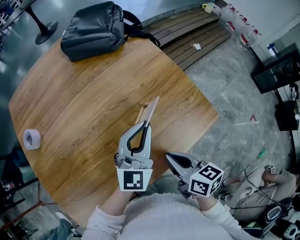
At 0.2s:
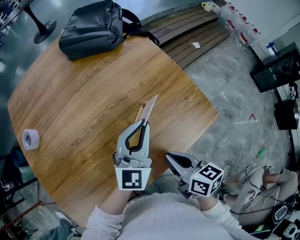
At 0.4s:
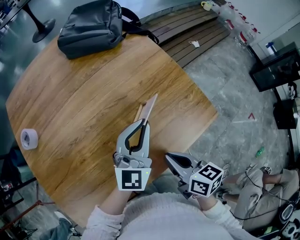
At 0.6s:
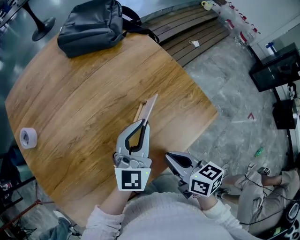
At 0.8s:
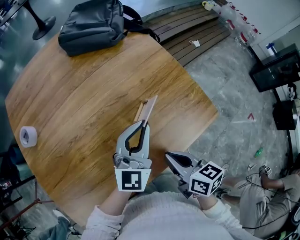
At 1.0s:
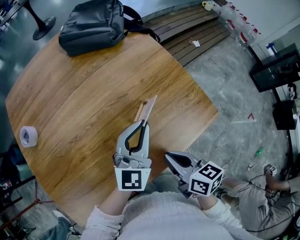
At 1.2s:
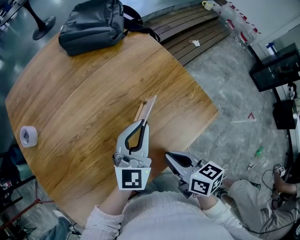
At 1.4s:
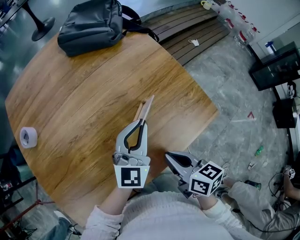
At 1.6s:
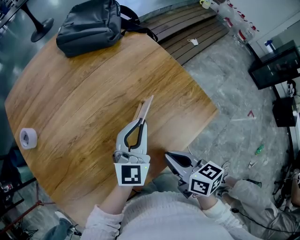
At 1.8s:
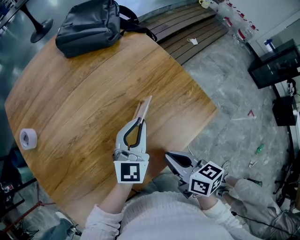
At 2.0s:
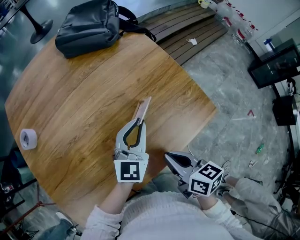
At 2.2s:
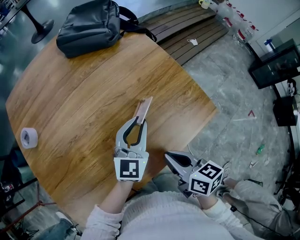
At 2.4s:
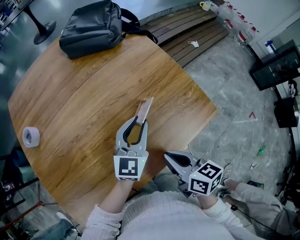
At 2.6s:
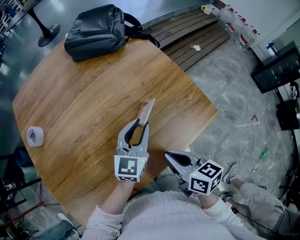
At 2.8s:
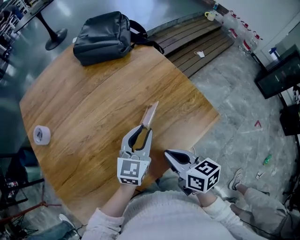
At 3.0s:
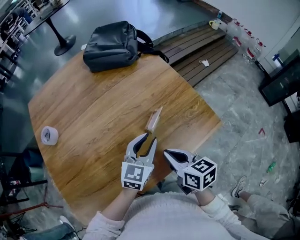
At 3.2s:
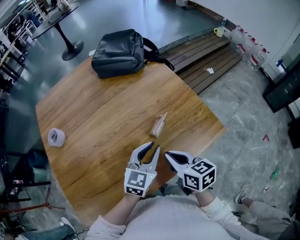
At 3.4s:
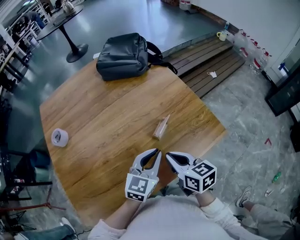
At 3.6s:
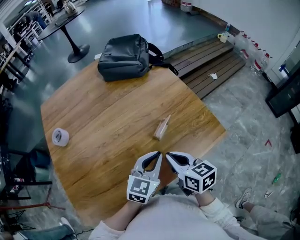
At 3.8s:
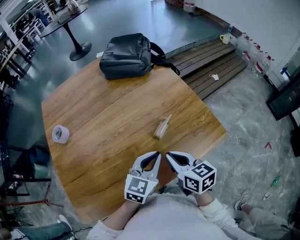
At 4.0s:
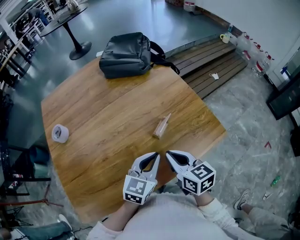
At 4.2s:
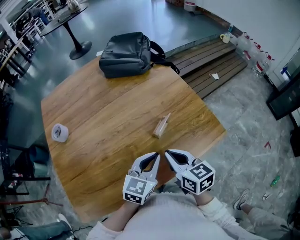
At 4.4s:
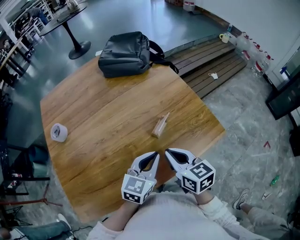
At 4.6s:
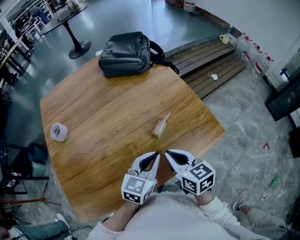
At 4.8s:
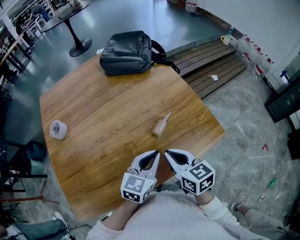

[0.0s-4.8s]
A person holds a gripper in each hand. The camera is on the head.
0.0s to 1.6s: The grippers stay close to where they were, moving slightly.
1.6s to 3.2s: The left gripper travels backward by approximately 5 cm.
3.2s to 4.8s: The grippers move only a little.

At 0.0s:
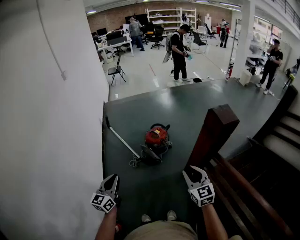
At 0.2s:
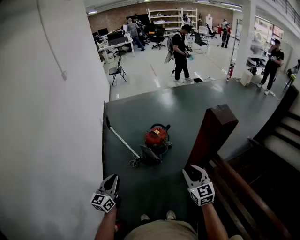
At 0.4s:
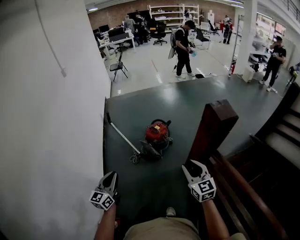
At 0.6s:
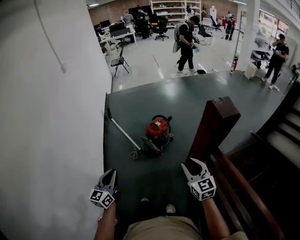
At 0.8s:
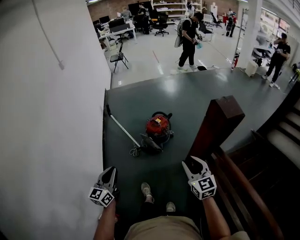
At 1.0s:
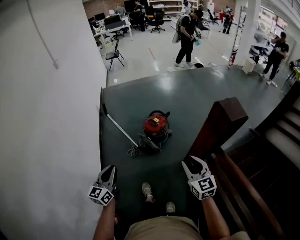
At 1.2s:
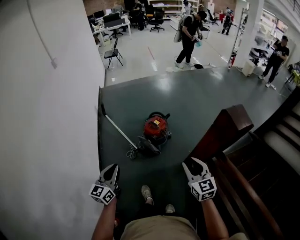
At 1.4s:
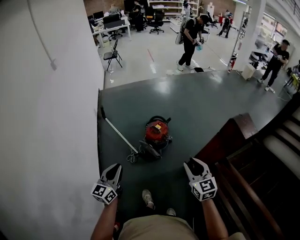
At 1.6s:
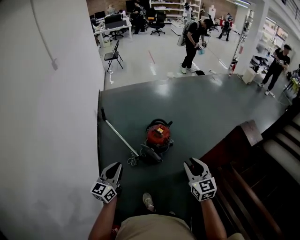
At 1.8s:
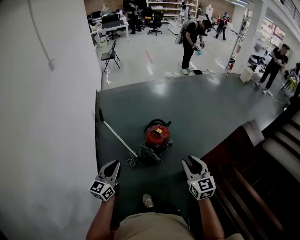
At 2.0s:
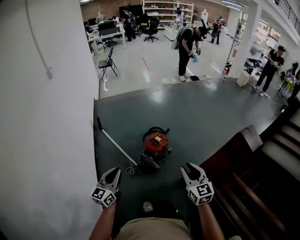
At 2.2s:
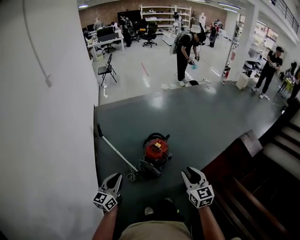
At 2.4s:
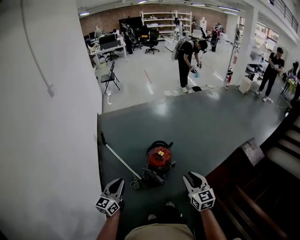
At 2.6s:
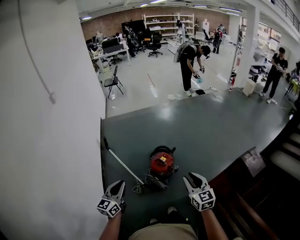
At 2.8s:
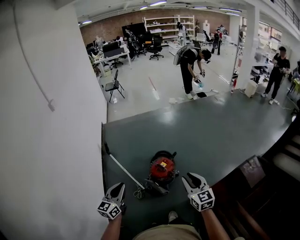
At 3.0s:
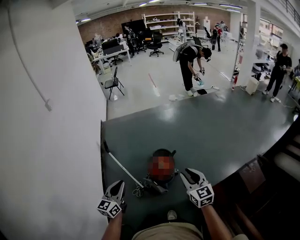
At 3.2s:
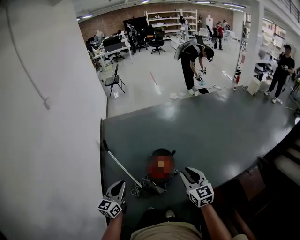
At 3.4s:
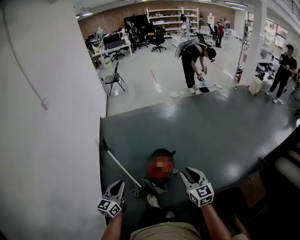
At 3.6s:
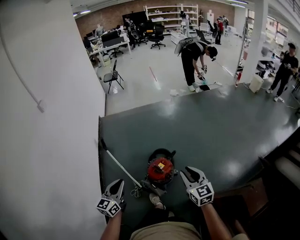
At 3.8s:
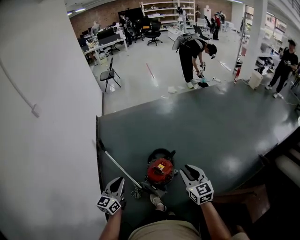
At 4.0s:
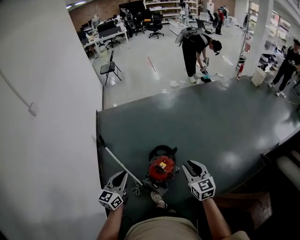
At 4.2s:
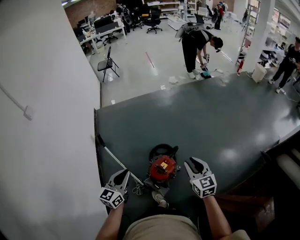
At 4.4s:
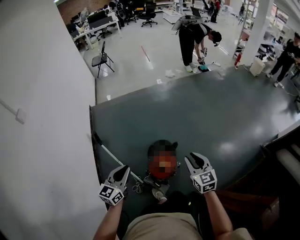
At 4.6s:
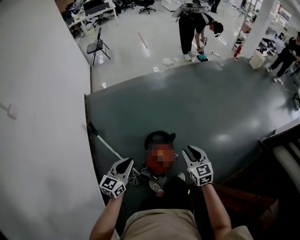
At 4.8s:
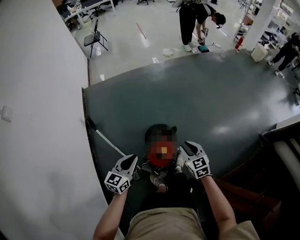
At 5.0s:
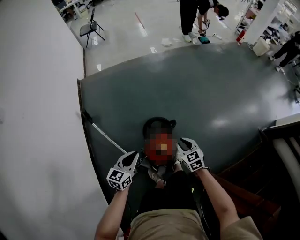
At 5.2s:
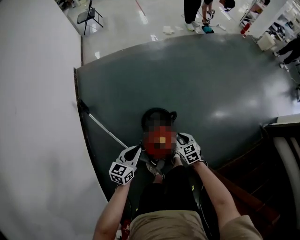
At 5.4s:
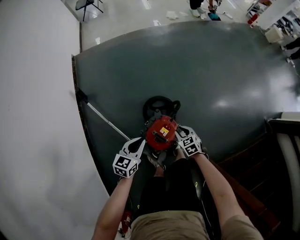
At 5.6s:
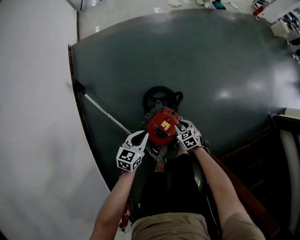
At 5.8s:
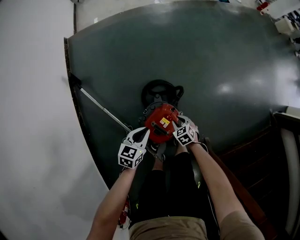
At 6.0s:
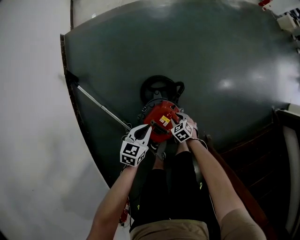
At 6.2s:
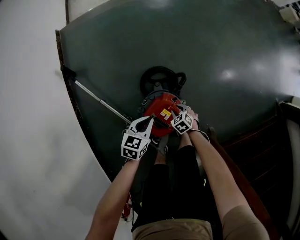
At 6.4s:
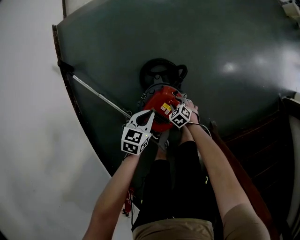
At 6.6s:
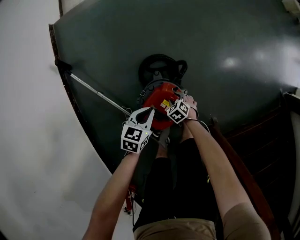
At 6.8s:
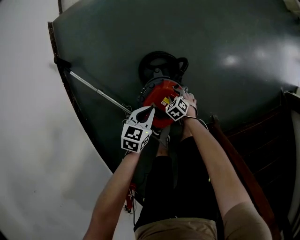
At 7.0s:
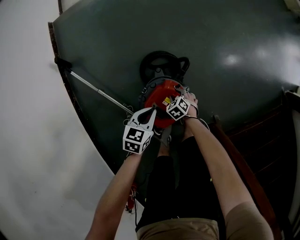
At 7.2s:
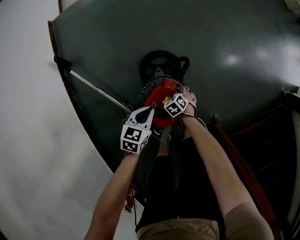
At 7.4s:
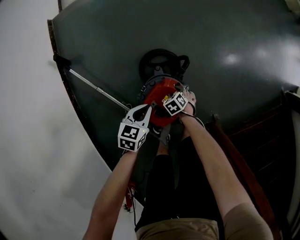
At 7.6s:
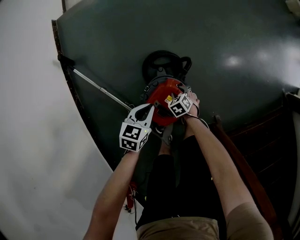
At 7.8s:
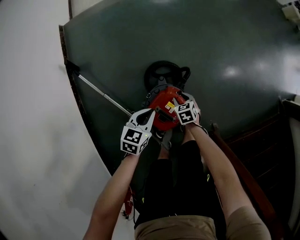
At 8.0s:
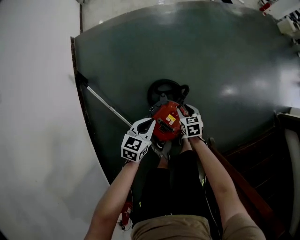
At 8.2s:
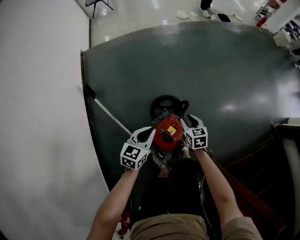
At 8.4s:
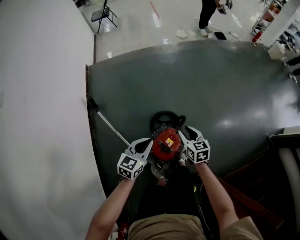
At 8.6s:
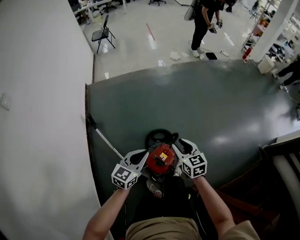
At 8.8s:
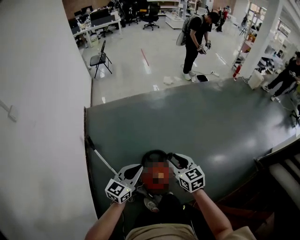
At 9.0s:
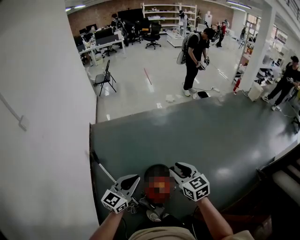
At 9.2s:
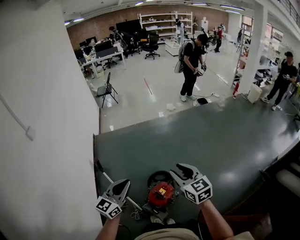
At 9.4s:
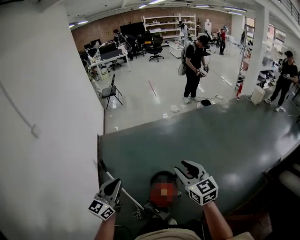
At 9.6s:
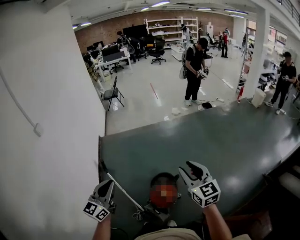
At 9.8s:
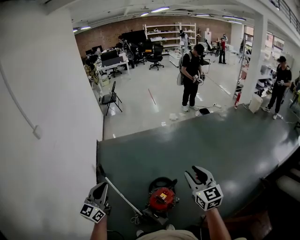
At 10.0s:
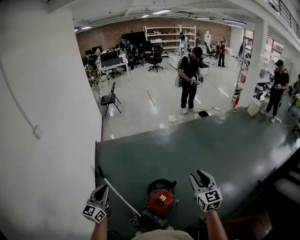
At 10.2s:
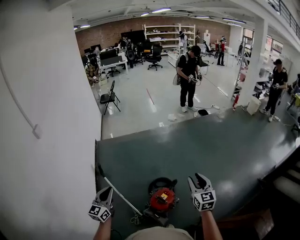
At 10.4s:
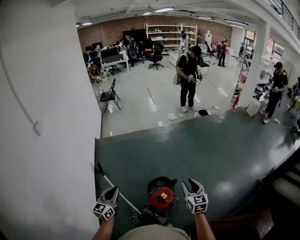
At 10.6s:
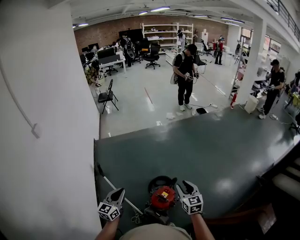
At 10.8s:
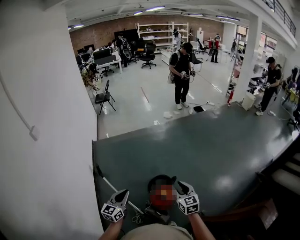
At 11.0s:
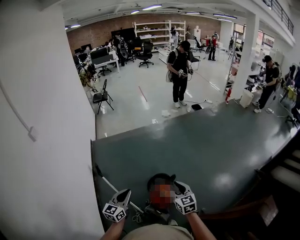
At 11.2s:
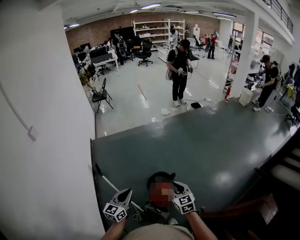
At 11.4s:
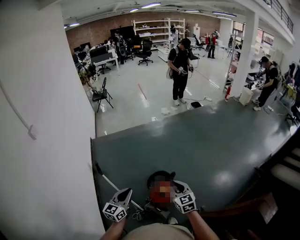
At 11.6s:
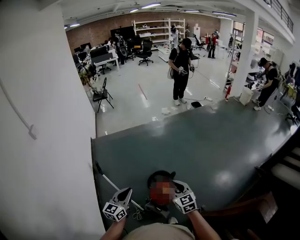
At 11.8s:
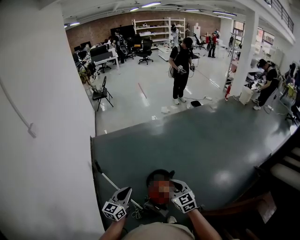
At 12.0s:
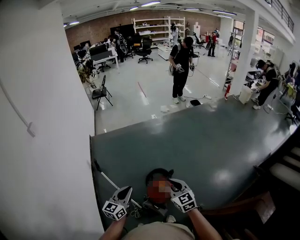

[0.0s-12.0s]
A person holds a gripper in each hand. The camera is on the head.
0.0s to 1.6s: The left gripper goes some 20 cm forward, while the right gripper travels forward and to the left by roughly 20 cm.
1.6s to 3.0s: The two grippers go about 20 cm forward.
3.0s to 4.4s: Both grippers travel together forward, about 30 cm.
4.4s to 6.0s: Both grippers travel together downward, roughly 50 cm. The left gripper turns by roughly 30 degrees. The right gripper tilts its fingers approximately 40 degrees downward.
6.0s to 7.6s: The two grippers go approximately 5 cm downward.
7.6s to 9.0s: The two grippers go some 70 cm upward. The right gripper tips its fingers upward by approximately 50 degrees; the left gripper tilts its fingers about 40 degrees upward.
9.0s to 10.4s: The right gripper moves backward, roughly 5 cm, reaches some 10 cm upward, then returns, and changes its angle by about 20 degrees. The left gripper moves to the left and backward, some 20 cm.
10.4s to 12.0s: The left gripper heads to the right, covering roughly 10 cm. The right gripper moves to the left and backward, approximately 10 cm, and closes up.

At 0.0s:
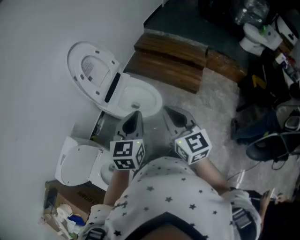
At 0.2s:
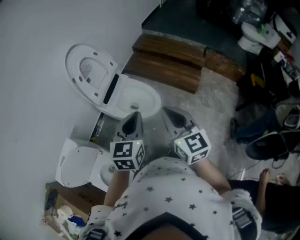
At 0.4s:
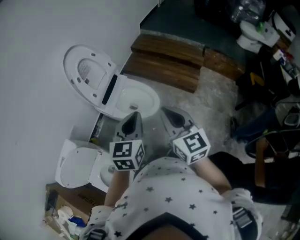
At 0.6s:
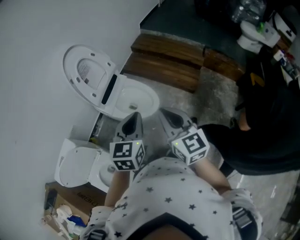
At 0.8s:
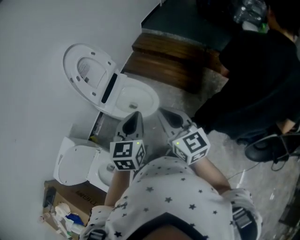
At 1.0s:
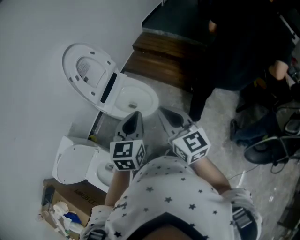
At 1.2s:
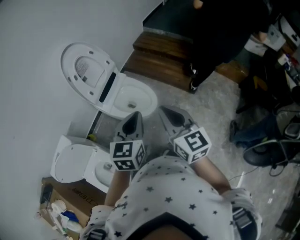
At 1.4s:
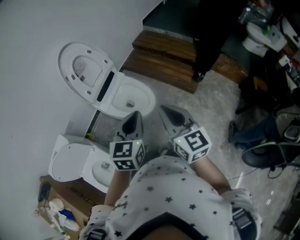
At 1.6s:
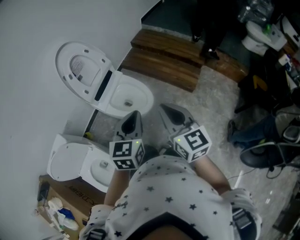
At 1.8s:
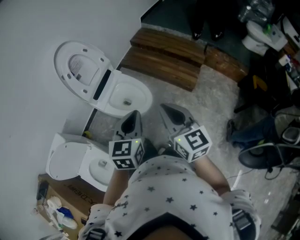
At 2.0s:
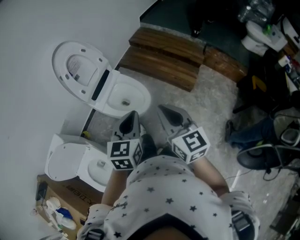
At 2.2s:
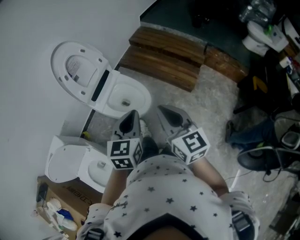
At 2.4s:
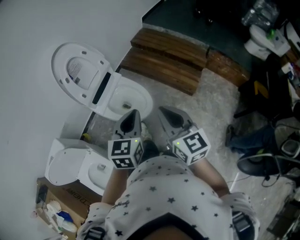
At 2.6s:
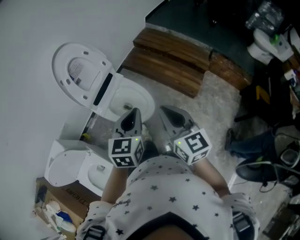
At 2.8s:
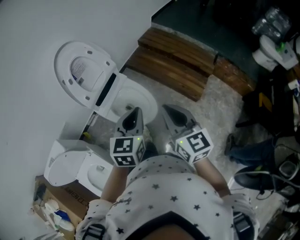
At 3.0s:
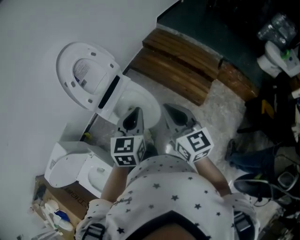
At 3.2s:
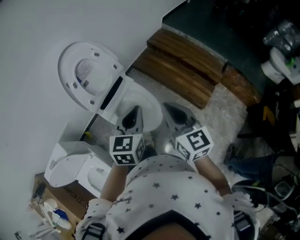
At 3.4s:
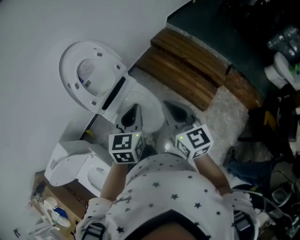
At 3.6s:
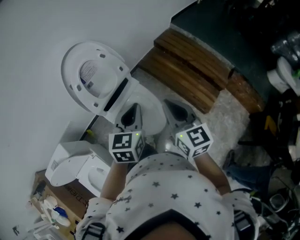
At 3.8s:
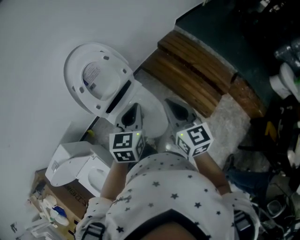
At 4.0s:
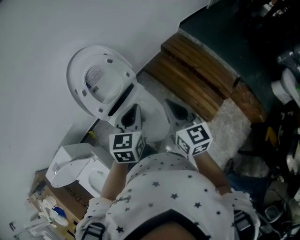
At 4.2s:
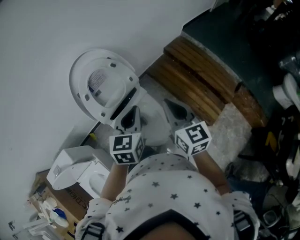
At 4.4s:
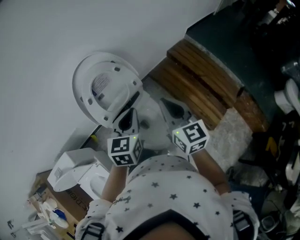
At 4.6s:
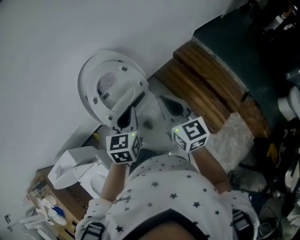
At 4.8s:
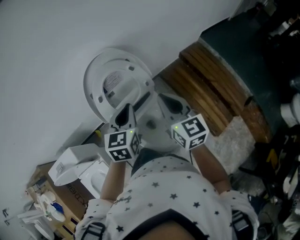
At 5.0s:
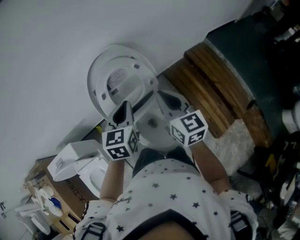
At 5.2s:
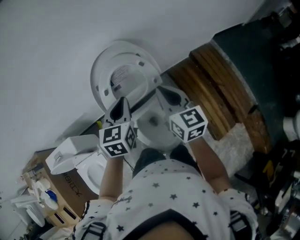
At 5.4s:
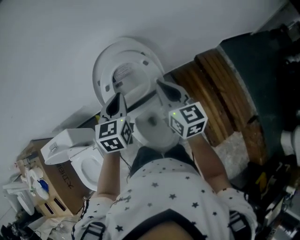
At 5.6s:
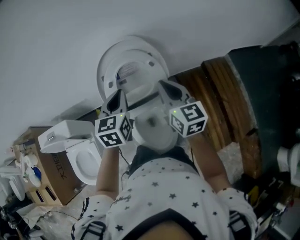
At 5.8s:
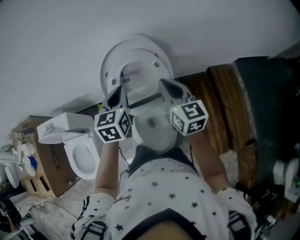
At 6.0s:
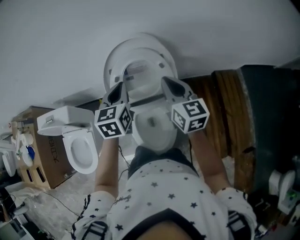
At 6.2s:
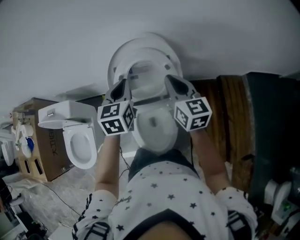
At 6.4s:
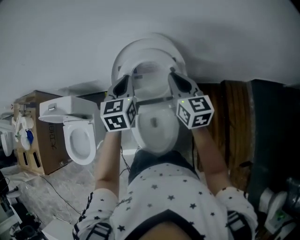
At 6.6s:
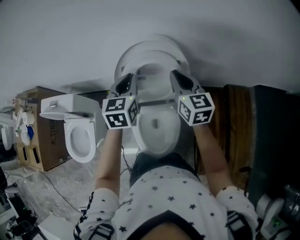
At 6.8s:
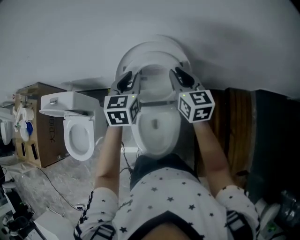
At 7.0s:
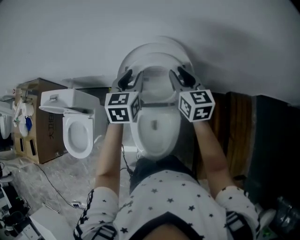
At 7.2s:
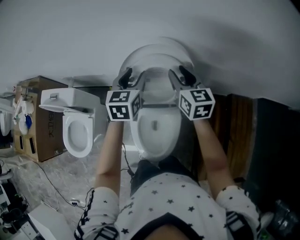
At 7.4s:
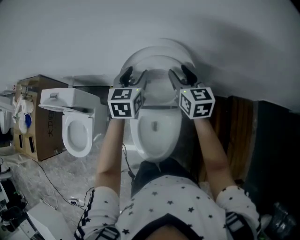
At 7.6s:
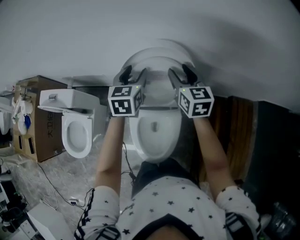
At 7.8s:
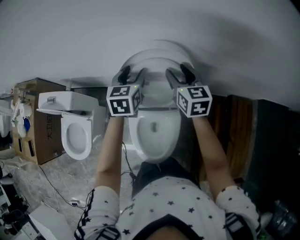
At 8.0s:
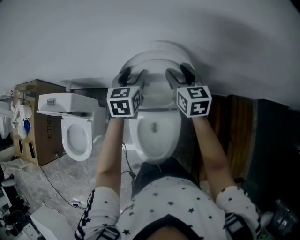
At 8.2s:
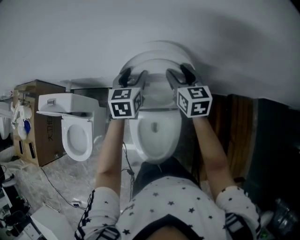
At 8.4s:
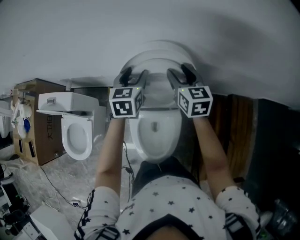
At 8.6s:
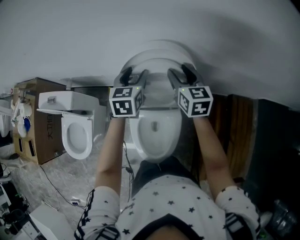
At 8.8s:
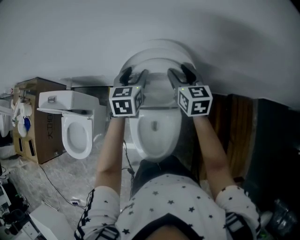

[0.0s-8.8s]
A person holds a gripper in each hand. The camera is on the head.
0.0s to 1.4s: The two grippers go approximately 10 cm to the right.
1.4s to 3.0s: Both grippers move forward, roughly 20 cm.
3.0s to 4.4s: The left gripper heads forward and to the left, covering about 25 cm. The right gripper is displaced forward by about 25 cm.
4.4s to 5.8s: The left gripper shifts by approximately 15 cm, and rotates about 30 degrees. The right gripper shifts by some 20 cm, and rotates some 30 degrees.
5.8s to 7.4s: Both grippers move forward, about 15 cm. The left gripper opens up. Meanwhile the right gripper opens up.
7.4s to 8.8s: The grippers make only small movements.
